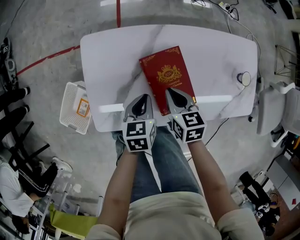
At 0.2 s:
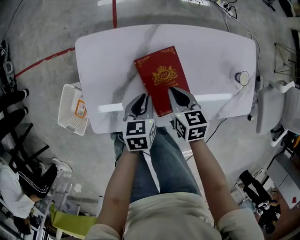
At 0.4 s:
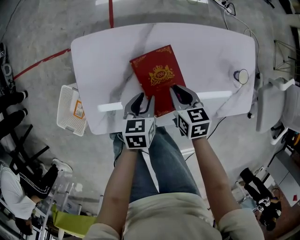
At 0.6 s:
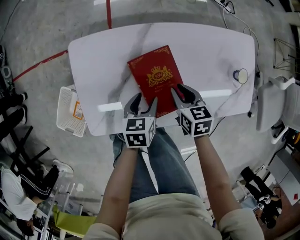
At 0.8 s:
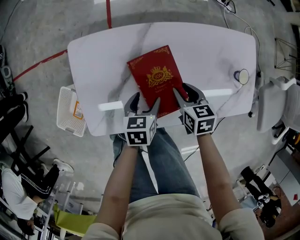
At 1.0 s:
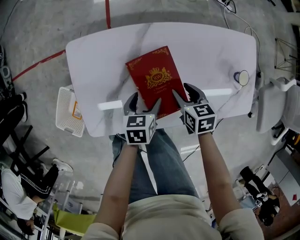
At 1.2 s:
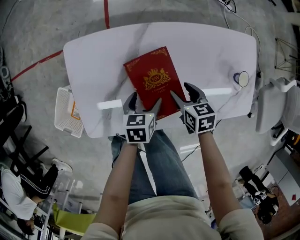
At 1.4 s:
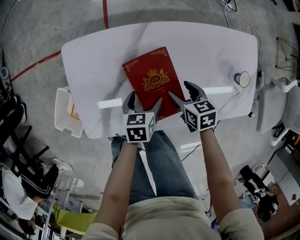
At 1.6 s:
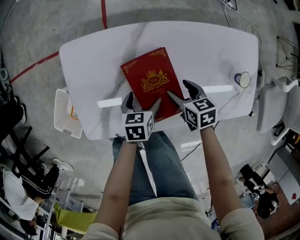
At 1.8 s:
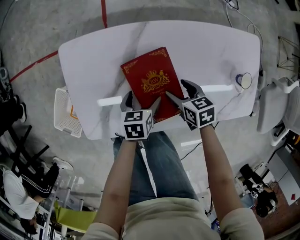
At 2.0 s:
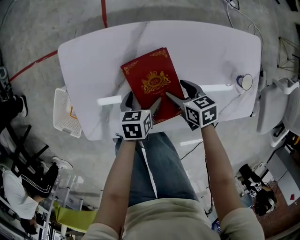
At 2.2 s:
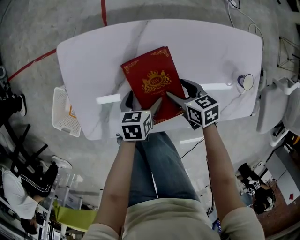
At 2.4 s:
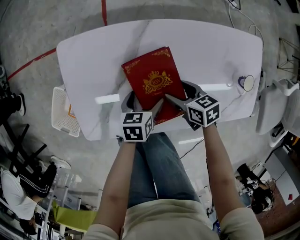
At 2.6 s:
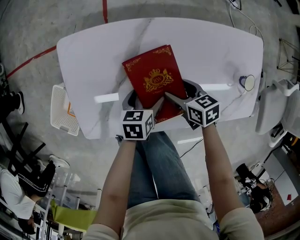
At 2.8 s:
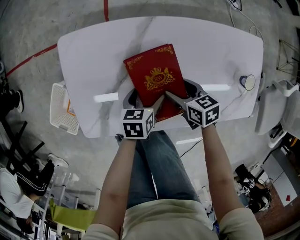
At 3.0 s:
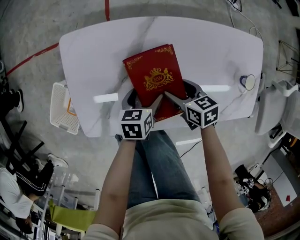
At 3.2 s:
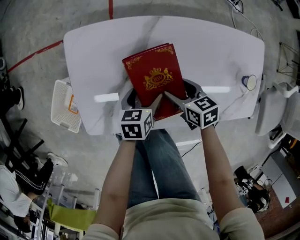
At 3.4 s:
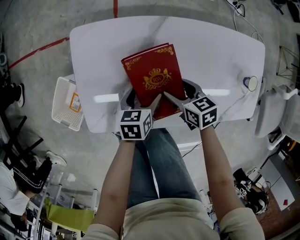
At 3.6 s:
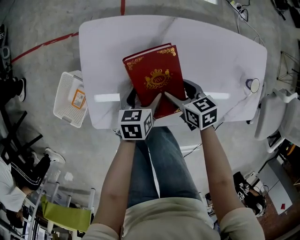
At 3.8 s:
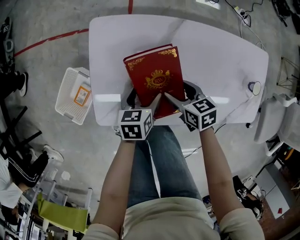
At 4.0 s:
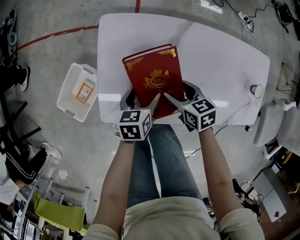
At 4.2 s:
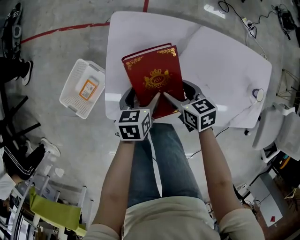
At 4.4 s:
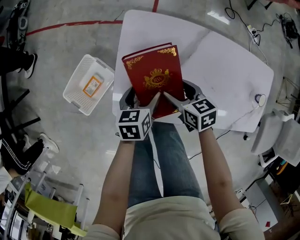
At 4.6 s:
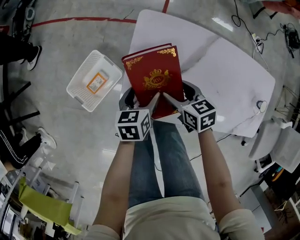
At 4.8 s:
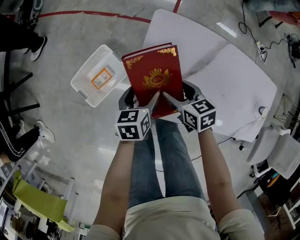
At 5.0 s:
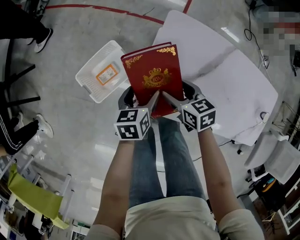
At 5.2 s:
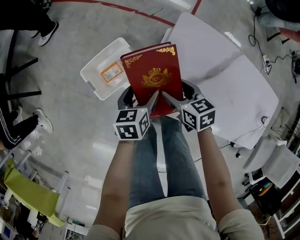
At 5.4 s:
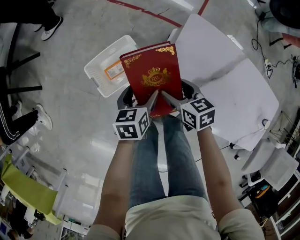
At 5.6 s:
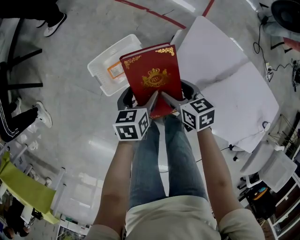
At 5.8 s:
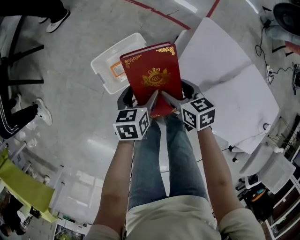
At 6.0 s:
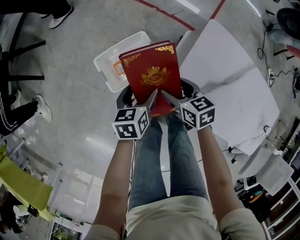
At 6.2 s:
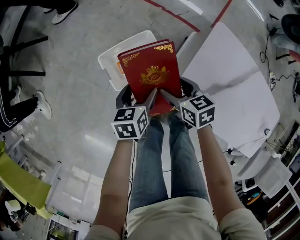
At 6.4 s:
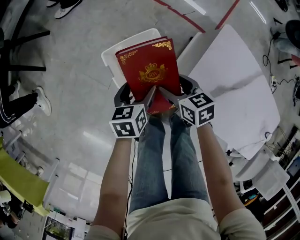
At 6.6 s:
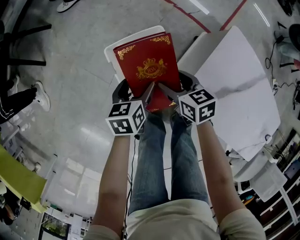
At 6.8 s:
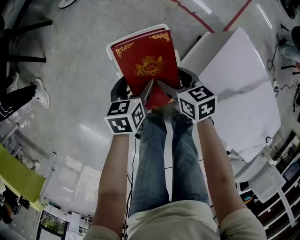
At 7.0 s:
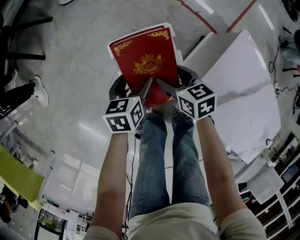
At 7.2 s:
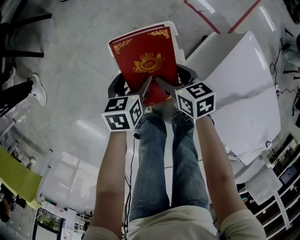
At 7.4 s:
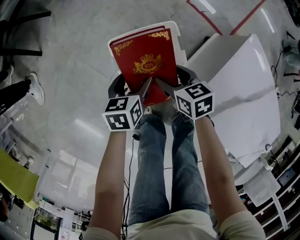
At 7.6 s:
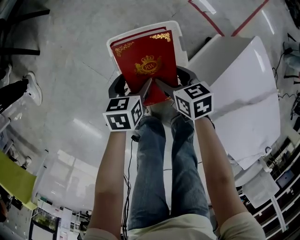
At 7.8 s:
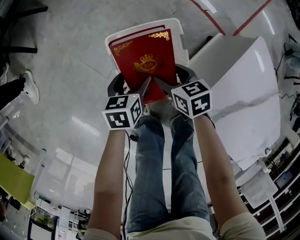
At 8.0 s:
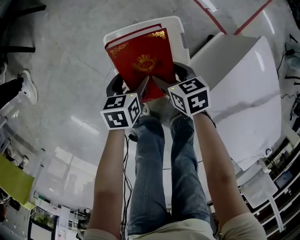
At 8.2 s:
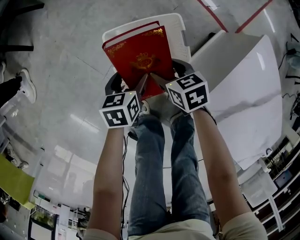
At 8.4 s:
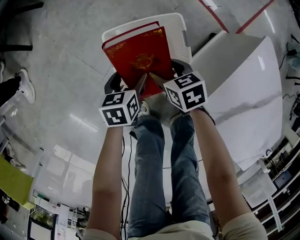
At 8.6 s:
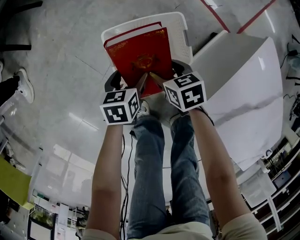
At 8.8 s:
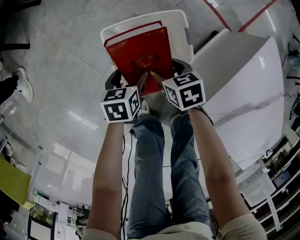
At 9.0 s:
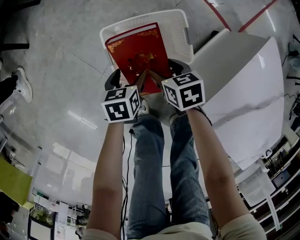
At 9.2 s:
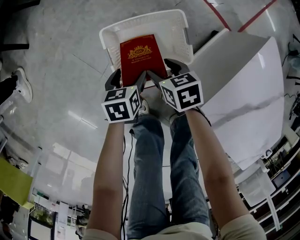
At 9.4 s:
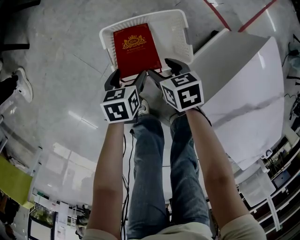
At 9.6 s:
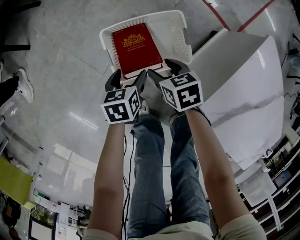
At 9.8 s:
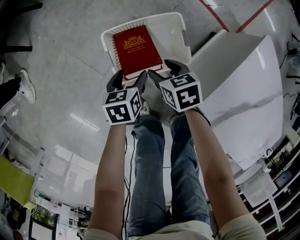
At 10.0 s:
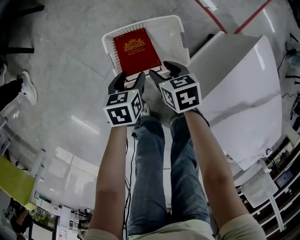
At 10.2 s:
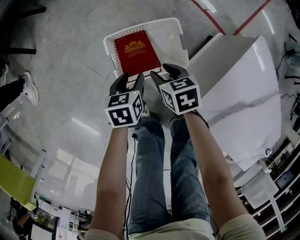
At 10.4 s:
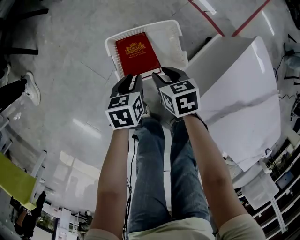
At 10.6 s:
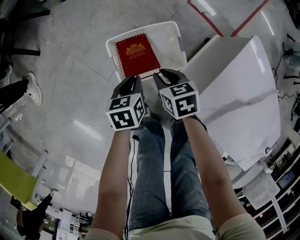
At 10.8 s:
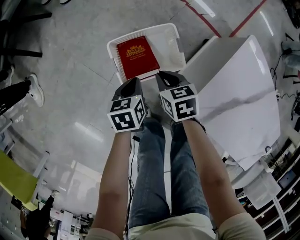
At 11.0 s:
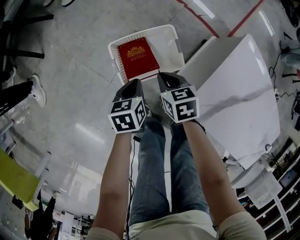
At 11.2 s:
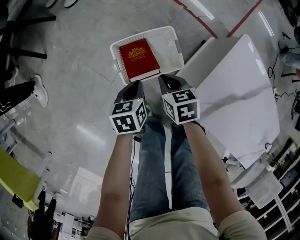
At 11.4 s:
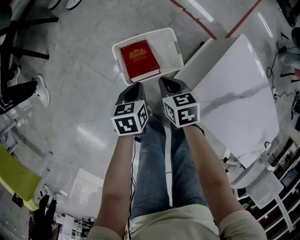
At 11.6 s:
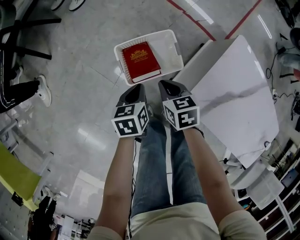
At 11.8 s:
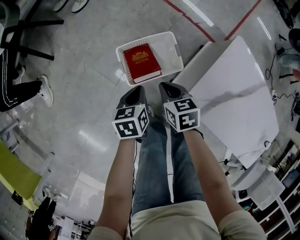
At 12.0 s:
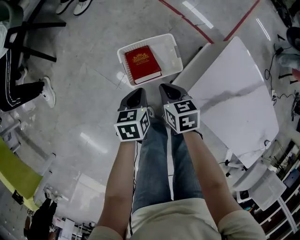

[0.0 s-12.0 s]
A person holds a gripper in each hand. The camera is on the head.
0.0 to 1.6 s: The right gripper moves to the right and downward, about 15 cm, and opens up. Meanwhile the left gripper heads downward and to the right, covering approximately 10 cm, and opens its fingers.
1.6 to 3.0 s: The grippers make only small movements.
3.0 to 4.4 s: Both grippers travel together to the left, roughly 25 cm.
4.4 to 6.0 s: The grippers both shift to the left by approximately 25 cm. The left gripper rotates about 20 degrees.
6.0 to 7.6 s: The left gripper goes roughly 20 cm to the left, downward and forward. Meanwhile the right gripper is displaced downward, to the left and forward by about 20 cm.
7.6 to 9.0 s: Both grippers travel together downward, roughly 10 cm.
9.0 to 10.4 s: The grippers both shift upward by approximately 5 cm. The left gripper closes its fingers. The right gripper closes up.
10.4 to 12.0 s: Both grippers move upward, some 15 cm.

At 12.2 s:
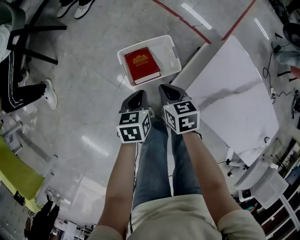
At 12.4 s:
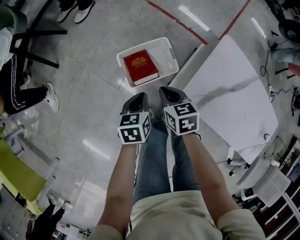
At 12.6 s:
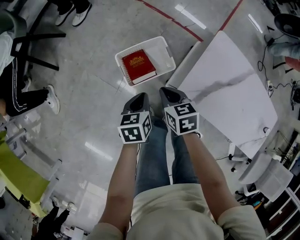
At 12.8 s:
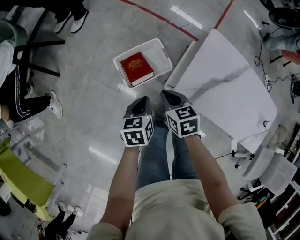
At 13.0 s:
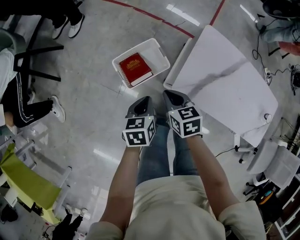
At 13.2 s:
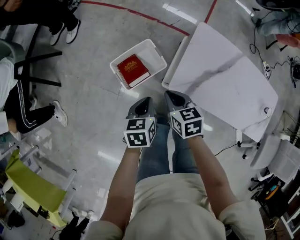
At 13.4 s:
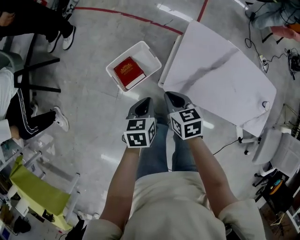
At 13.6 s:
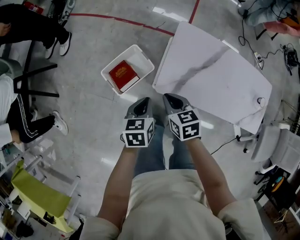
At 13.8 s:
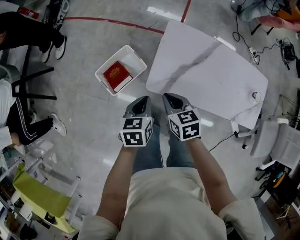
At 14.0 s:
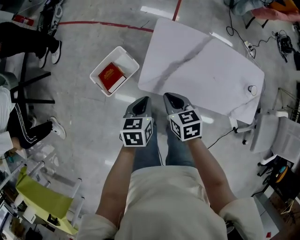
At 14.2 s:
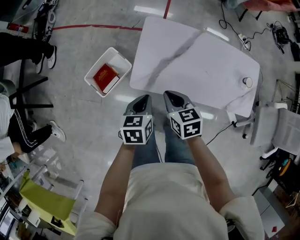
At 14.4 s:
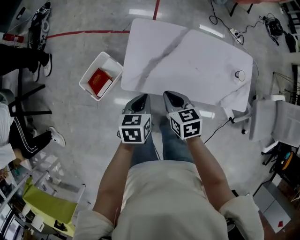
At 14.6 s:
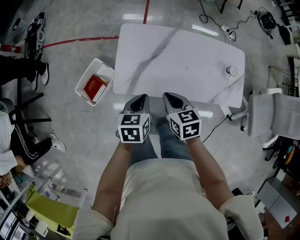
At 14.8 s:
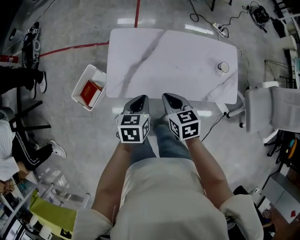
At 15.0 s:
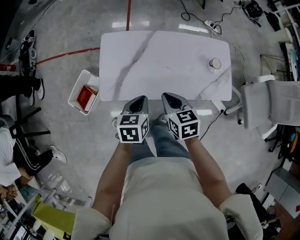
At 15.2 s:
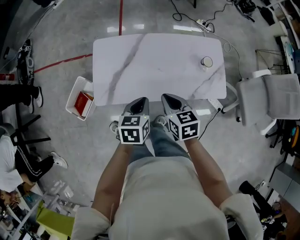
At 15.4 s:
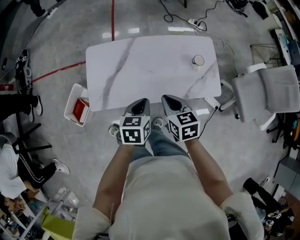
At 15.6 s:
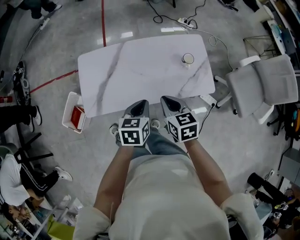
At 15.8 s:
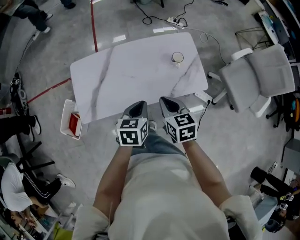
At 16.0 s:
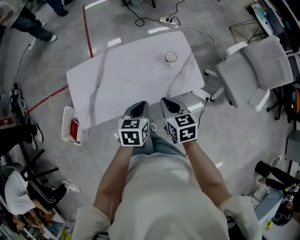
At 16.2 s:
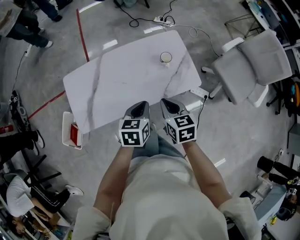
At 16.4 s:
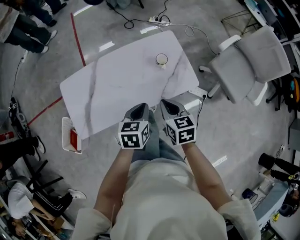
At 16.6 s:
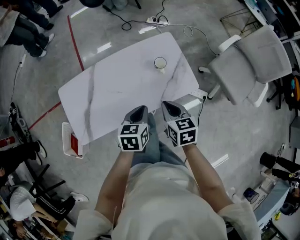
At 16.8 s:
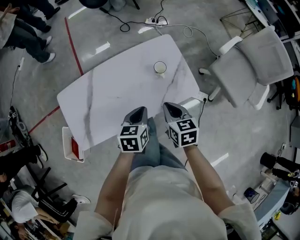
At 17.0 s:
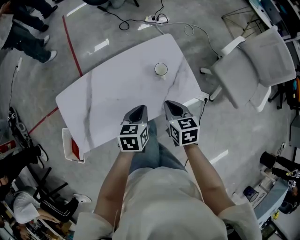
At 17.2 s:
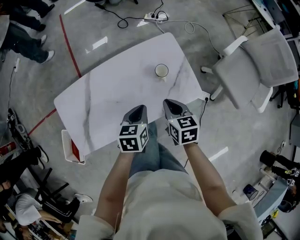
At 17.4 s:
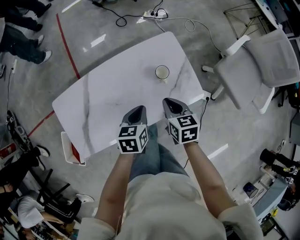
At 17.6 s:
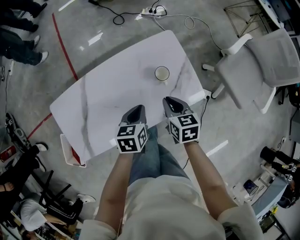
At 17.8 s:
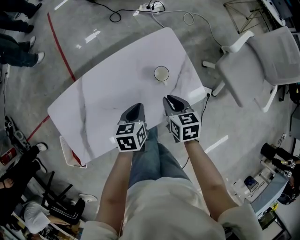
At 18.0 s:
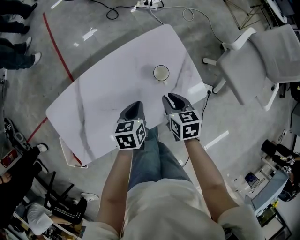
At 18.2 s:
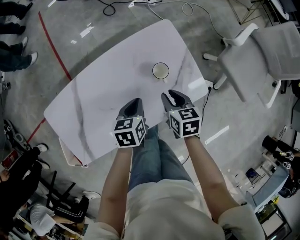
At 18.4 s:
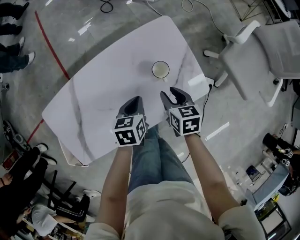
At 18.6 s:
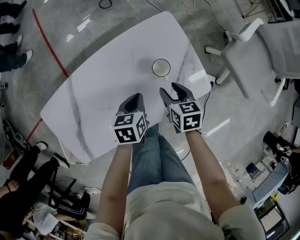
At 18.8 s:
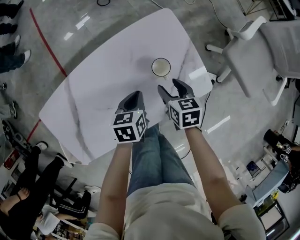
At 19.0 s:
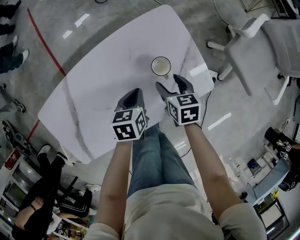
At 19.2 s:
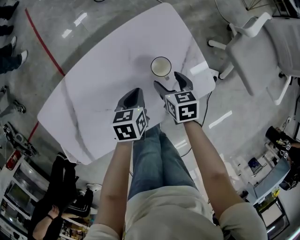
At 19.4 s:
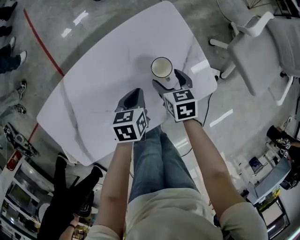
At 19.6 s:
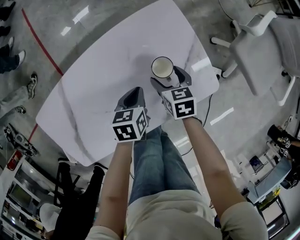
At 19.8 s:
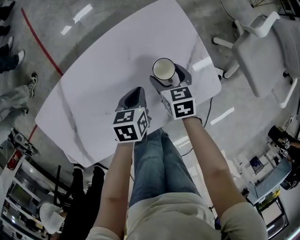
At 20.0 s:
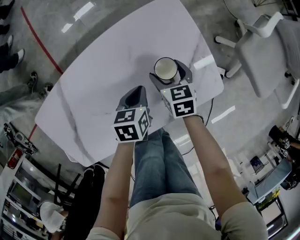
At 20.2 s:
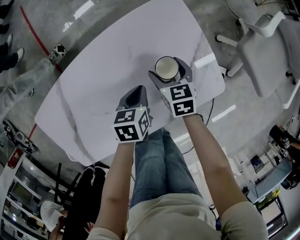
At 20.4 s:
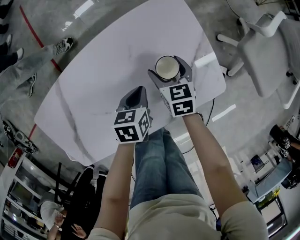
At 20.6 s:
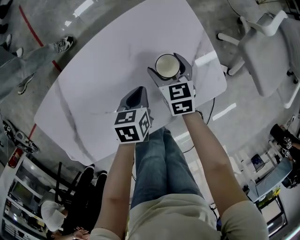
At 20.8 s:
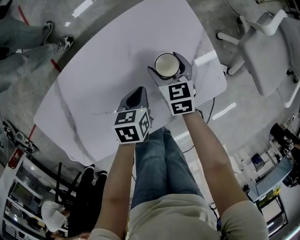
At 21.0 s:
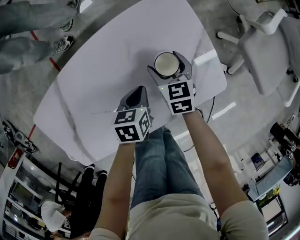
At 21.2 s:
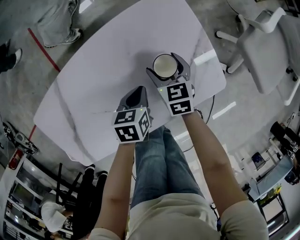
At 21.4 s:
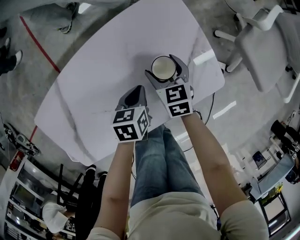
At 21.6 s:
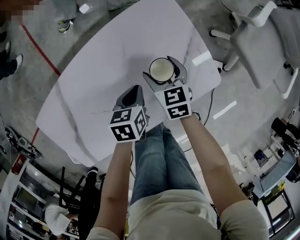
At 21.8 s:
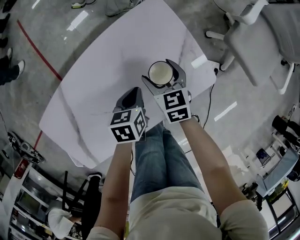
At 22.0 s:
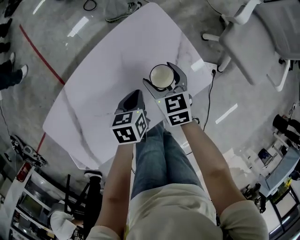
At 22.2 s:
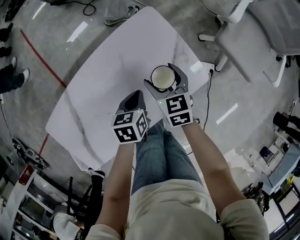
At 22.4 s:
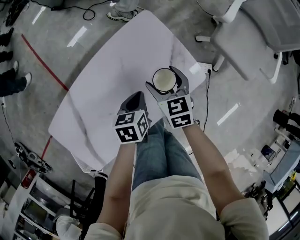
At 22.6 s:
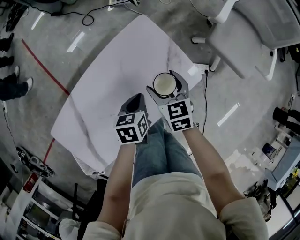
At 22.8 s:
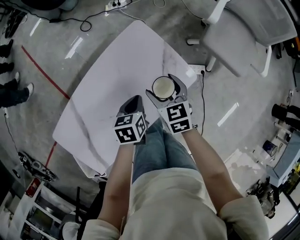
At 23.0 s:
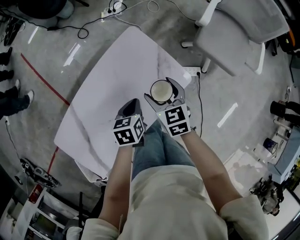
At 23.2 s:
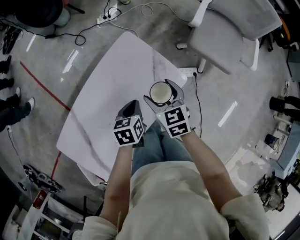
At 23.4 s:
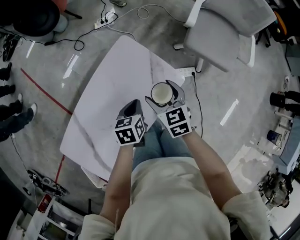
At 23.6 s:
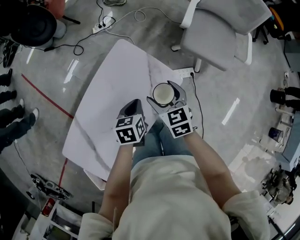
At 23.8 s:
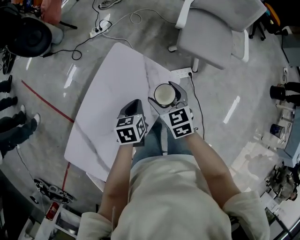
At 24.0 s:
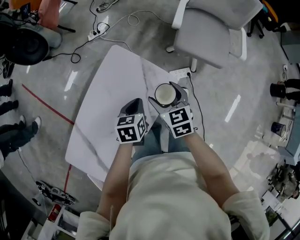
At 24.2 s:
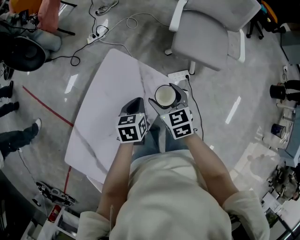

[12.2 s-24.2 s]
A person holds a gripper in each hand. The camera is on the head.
12.2 to 13.8 s: The right gripper is displaced to the right, upward and backward by approximately 25 cm, while the left gripper is displaced to the right and upward by approximately 25 cm, and rotates some 20 degrees.
13.8 to 15.2 s: Both grippers travel together to the right, some 35 cm. The left gripper swivels approximately 20 degrees, while the right gripper turns by roughly 20 degrees.
15.2 to 16.6 s: The two grippers go about 25 cm to the right. The right gripper swivels approximately 20 degrees.
16.6 to 18.2 s: The two grippers go about 25 cm forward and downward.
18.2 to 19.8 s: The left gripper heads downward, covering approximately 10 cm. Meanwhile the right gripper heads downward and forward, covering some 15 cm, and opens.
19.8 to 21.2 s: There are only small adjustments of the grippers.
21.2 to 22.6 s: Both grippers move upward, approximately 15 cm.
22.6 to 24.2 s: Both grippers move to the right and upward, about 15 cm.
